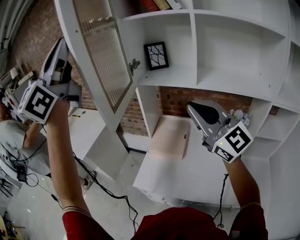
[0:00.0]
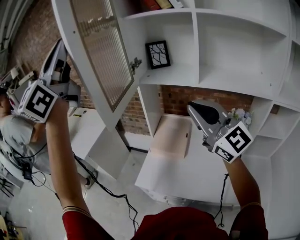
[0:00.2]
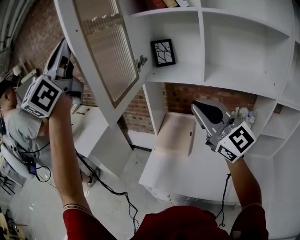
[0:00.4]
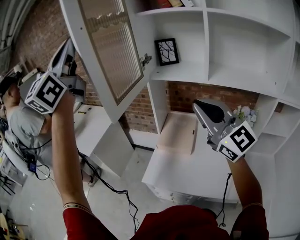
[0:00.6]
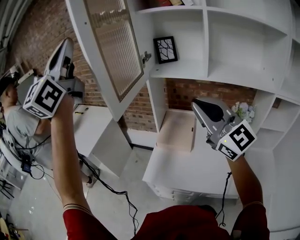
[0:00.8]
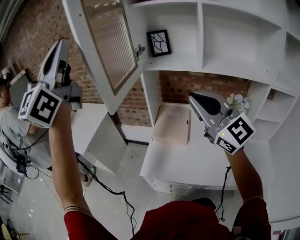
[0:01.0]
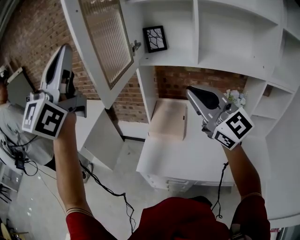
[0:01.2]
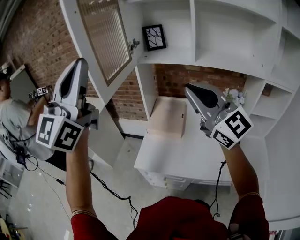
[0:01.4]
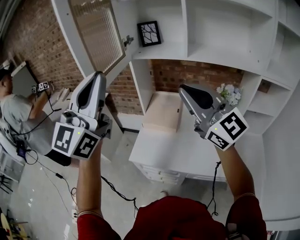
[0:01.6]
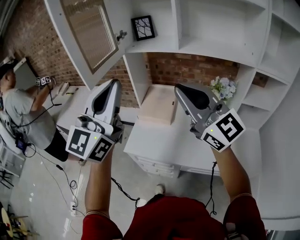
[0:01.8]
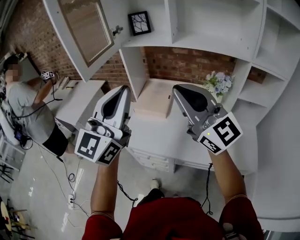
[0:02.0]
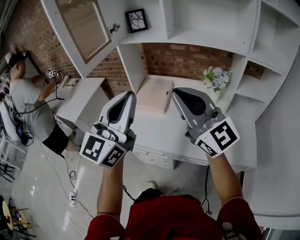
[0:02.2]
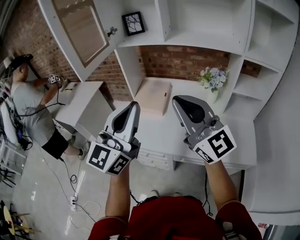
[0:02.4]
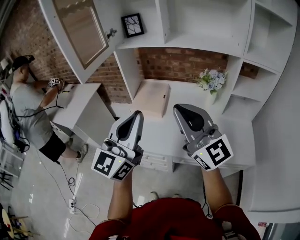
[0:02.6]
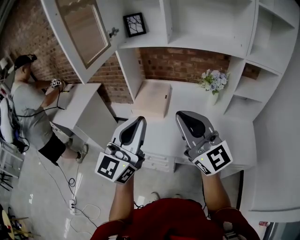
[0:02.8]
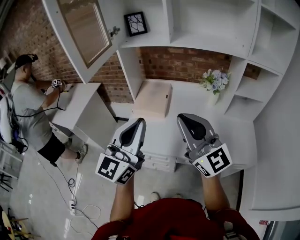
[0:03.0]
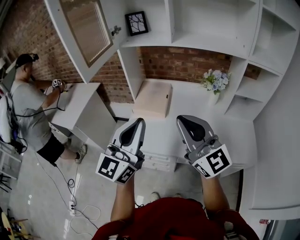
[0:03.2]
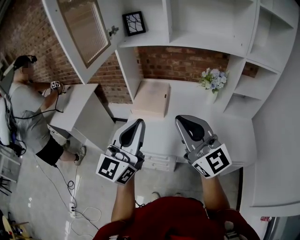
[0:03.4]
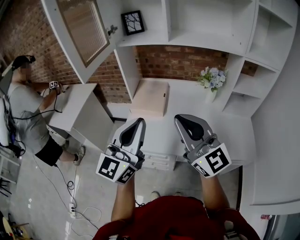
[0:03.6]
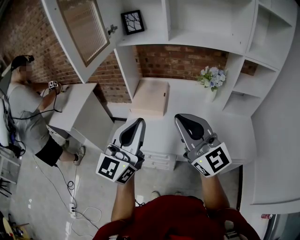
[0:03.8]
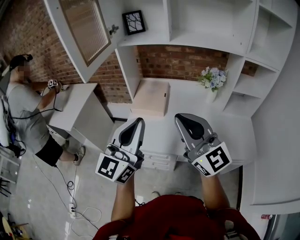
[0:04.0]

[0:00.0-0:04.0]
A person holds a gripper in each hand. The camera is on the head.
0:00.0 to 0:01.4: The left gripper heads downward and backward, covering some 15 cm, while the right gripper travels backward by roughly 5 cm.
0:01.4 to 0:02.6: The right gripper goes about 20 cm backward, to the right and downward. Meanwhile the left gripper heads downward, to the right and backward, covering about 30 cm, and turns by some 20 degrees.
0:02.6 to 0:04.0: The left gripper shifts by some 5 cm, while the right gripper moves about 5 cm.

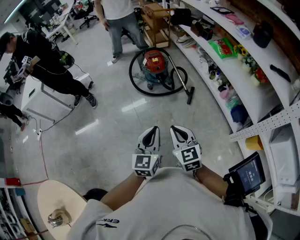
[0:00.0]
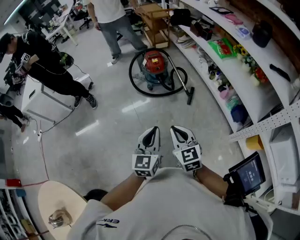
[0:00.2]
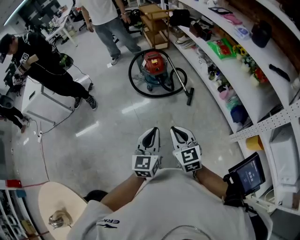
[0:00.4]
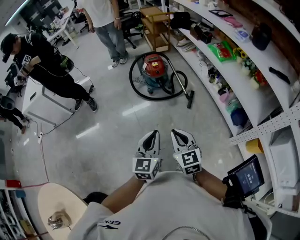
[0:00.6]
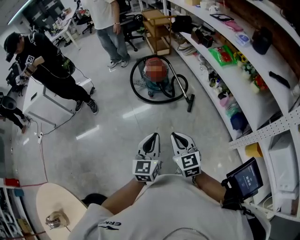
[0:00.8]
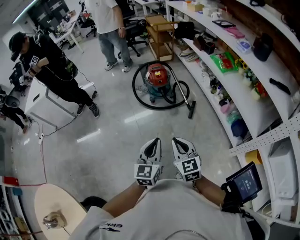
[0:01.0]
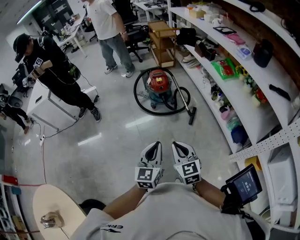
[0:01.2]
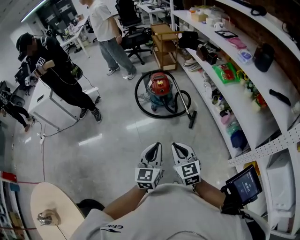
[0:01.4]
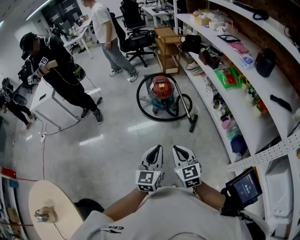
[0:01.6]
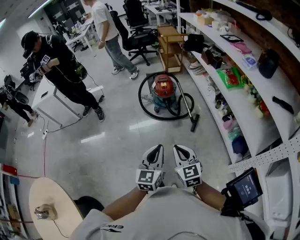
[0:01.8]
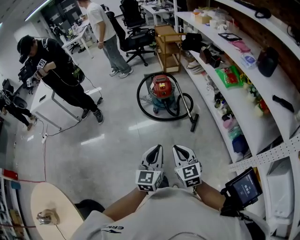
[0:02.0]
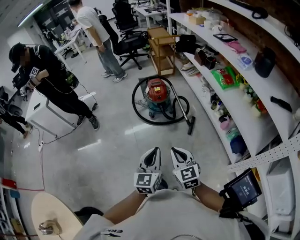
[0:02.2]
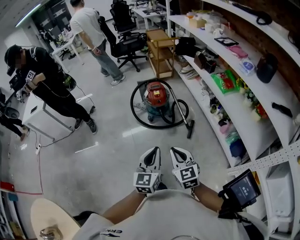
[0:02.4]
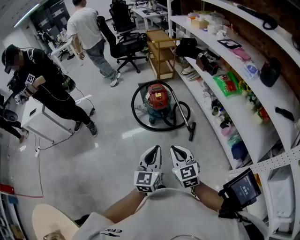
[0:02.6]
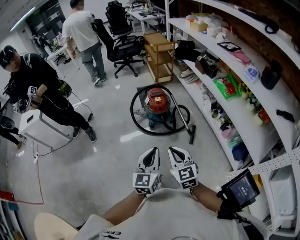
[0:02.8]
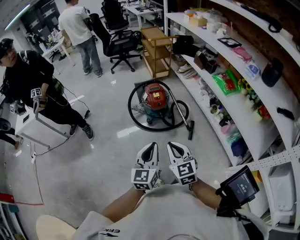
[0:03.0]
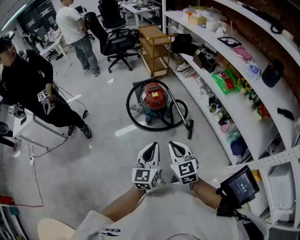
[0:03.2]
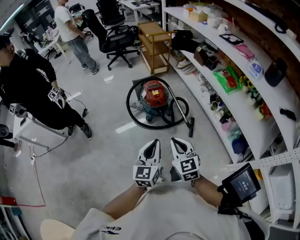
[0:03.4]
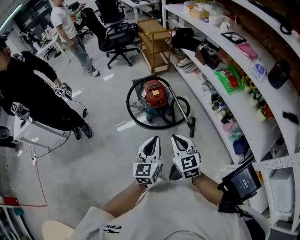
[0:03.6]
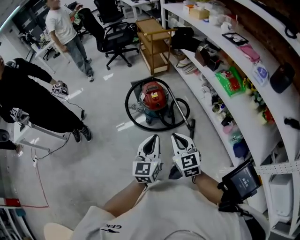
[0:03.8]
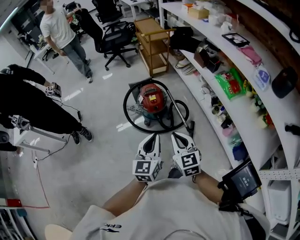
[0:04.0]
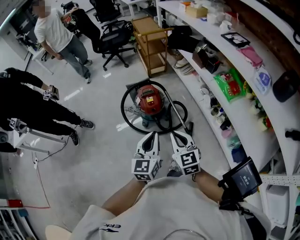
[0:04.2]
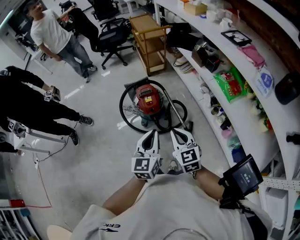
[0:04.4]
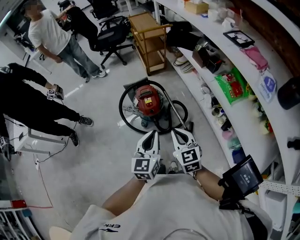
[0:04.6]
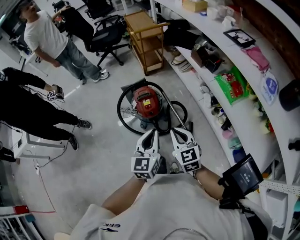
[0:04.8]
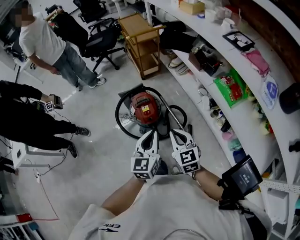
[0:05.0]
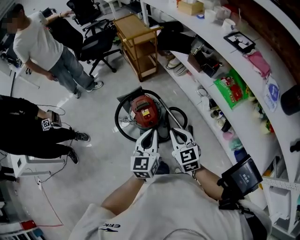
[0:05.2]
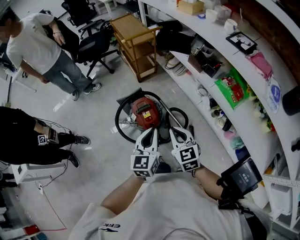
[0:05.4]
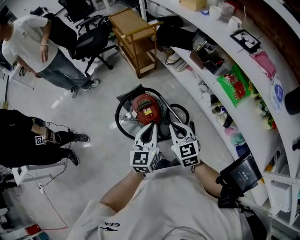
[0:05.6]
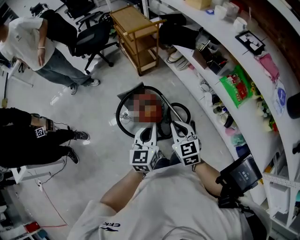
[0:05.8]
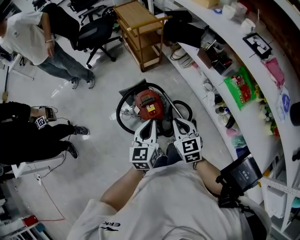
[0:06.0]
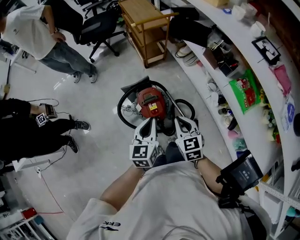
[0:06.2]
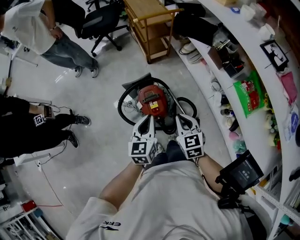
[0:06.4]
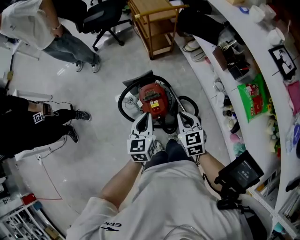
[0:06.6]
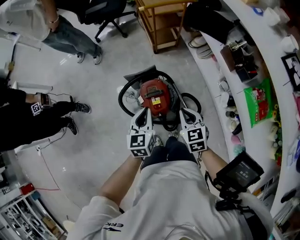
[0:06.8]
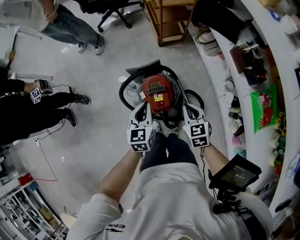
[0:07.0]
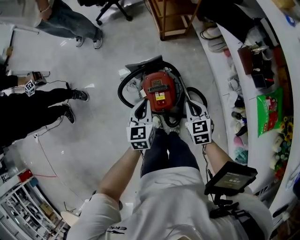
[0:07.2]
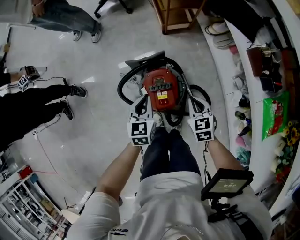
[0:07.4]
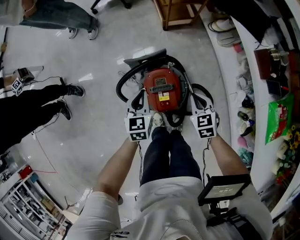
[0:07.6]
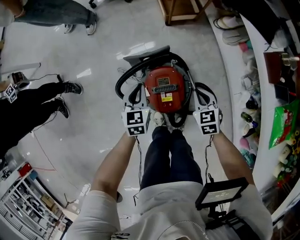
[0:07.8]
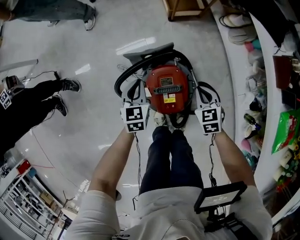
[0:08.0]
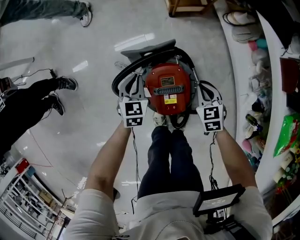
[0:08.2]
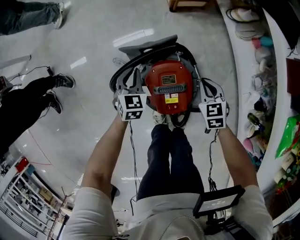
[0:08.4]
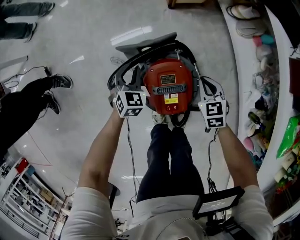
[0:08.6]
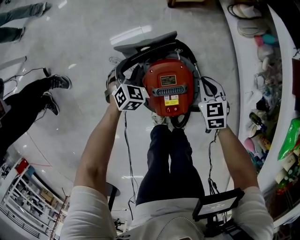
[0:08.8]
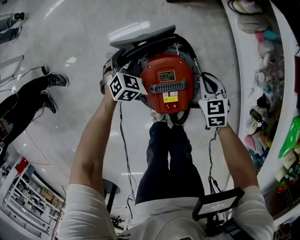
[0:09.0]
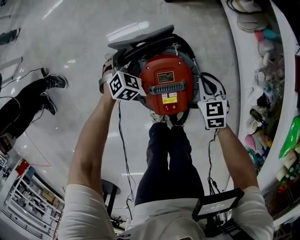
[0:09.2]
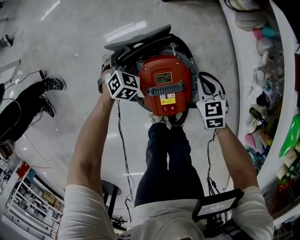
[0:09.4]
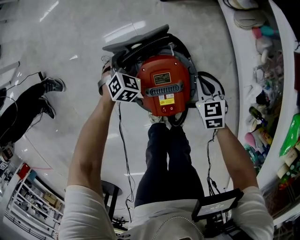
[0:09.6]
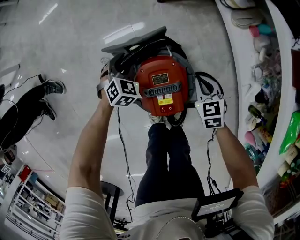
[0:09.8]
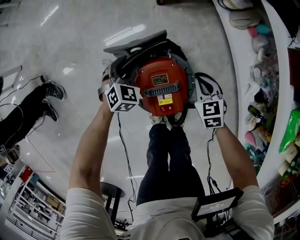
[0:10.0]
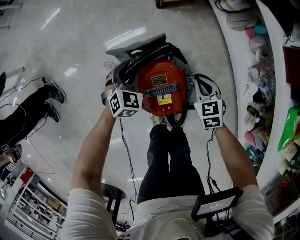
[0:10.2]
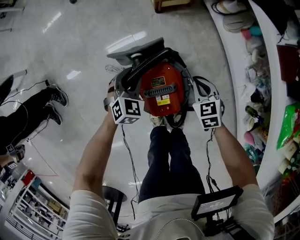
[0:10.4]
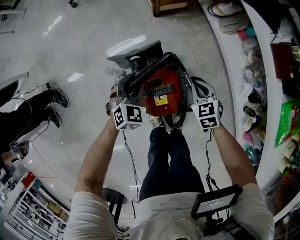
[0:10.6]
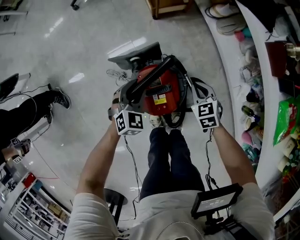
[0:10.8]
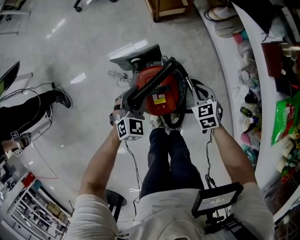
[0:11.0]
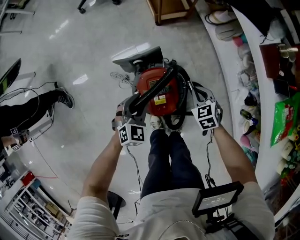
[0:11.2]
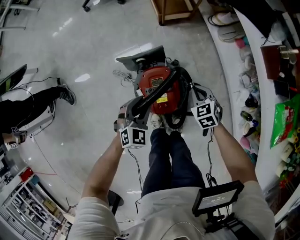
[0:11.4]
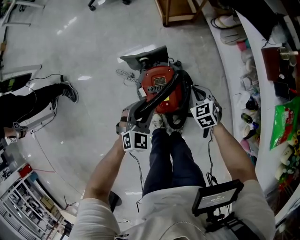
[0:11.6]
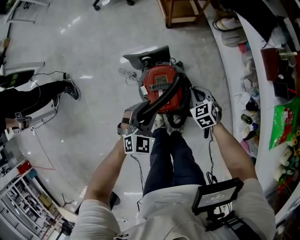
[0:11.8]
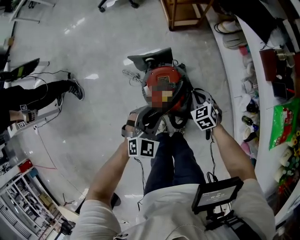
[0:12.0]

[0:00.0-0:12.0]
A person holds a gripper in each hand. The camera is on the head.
0:00.0 to 0:01.6: The grippers both shift to the right by approximately 5 cm.
0:01.6 to 0:03.0: The grippers both shift forward and to the left by some 20 cm.
0:03.0 to 0:04.4: The two grippers go approximately 30 cm forward and to the right.
0:04.4 to 0:06.0: The two grippers go roughly 25 cm forward.
0:06.0 to 0:07.6: The two grippers go roughly 35 cm downward and forward. The left gripper rotates about 30 degrees. Meanwhile the right gripper swivels approximately 20 degrees.
0:07.6 to 0:09.0: The left gripper moves downward and forward, some 30 cm, turns by about 40 degrees, and opens up; the right gripper is displaced downward by approximately 20 cm.
0:09.0 to 0:10.4: The left gripper goes some 10 cm upward and to the right.
0:10.4 to 0:12.0: The right gripper shifts some 10 cm backward and upward; the left gripper goes about 25 cm upward, backward and to the right.

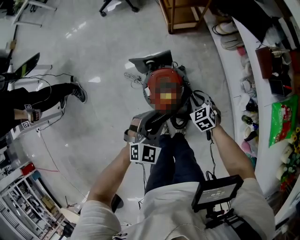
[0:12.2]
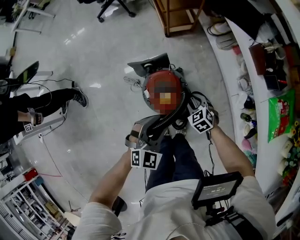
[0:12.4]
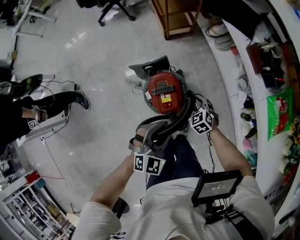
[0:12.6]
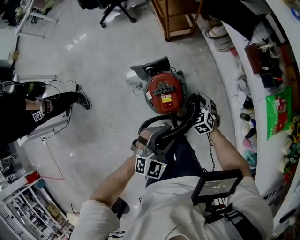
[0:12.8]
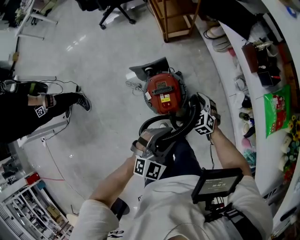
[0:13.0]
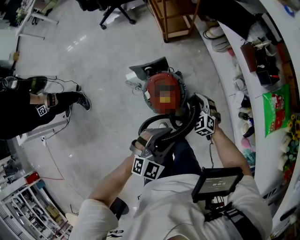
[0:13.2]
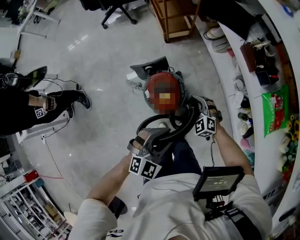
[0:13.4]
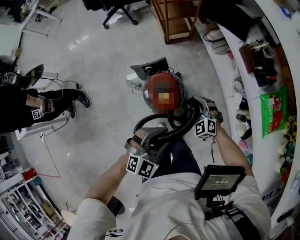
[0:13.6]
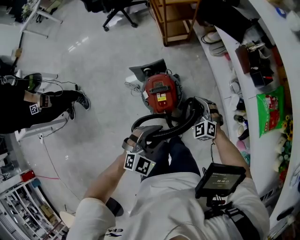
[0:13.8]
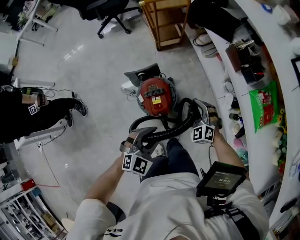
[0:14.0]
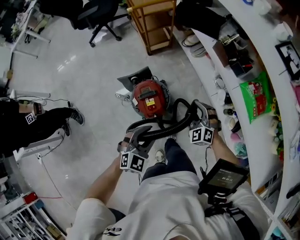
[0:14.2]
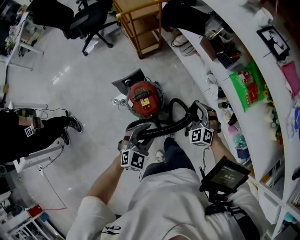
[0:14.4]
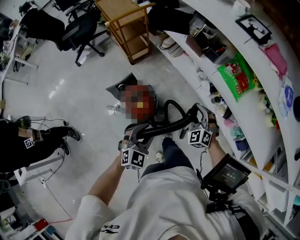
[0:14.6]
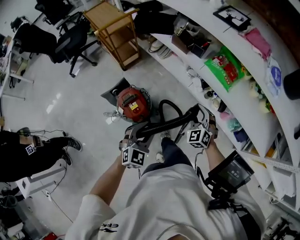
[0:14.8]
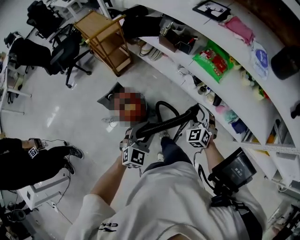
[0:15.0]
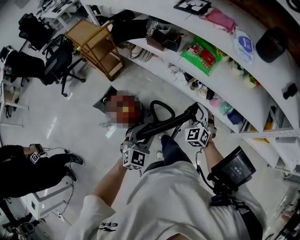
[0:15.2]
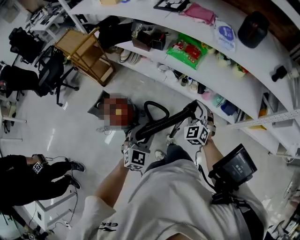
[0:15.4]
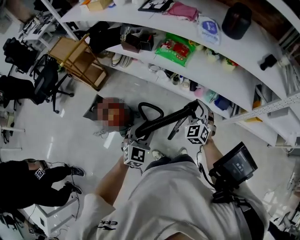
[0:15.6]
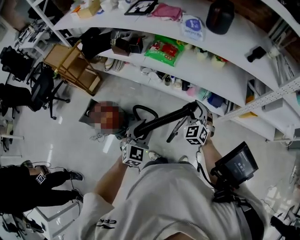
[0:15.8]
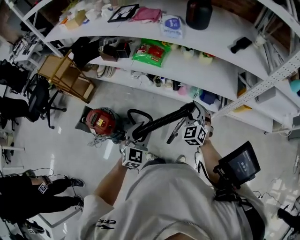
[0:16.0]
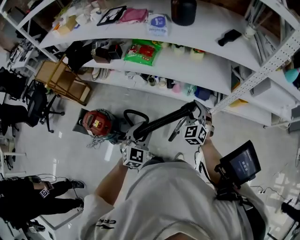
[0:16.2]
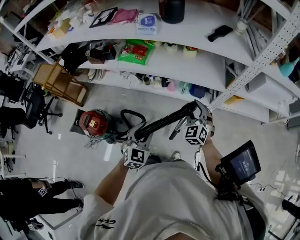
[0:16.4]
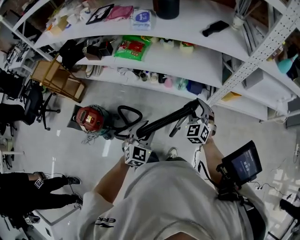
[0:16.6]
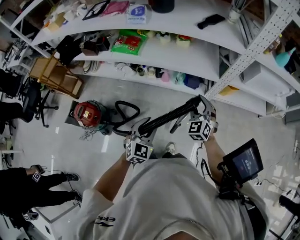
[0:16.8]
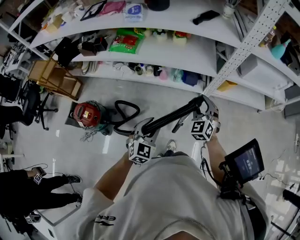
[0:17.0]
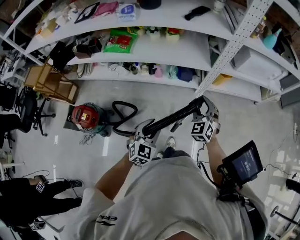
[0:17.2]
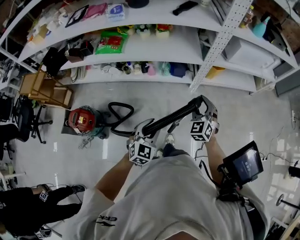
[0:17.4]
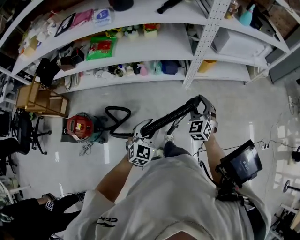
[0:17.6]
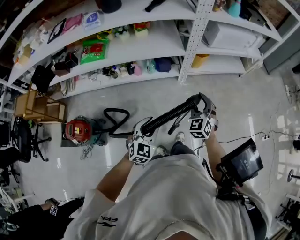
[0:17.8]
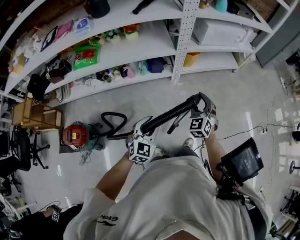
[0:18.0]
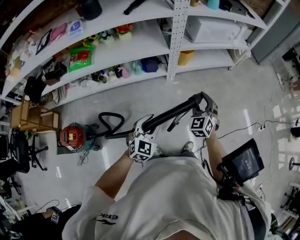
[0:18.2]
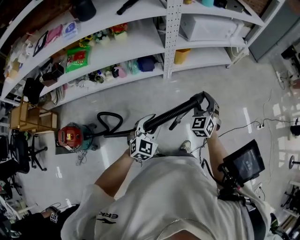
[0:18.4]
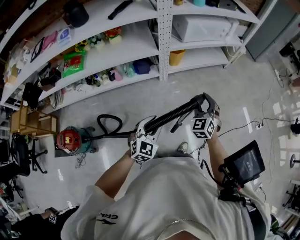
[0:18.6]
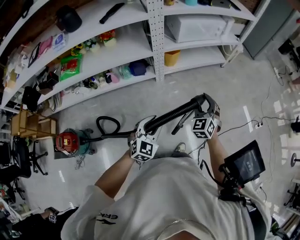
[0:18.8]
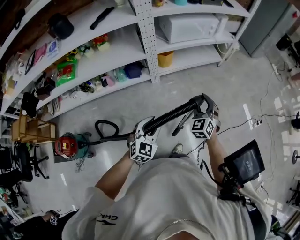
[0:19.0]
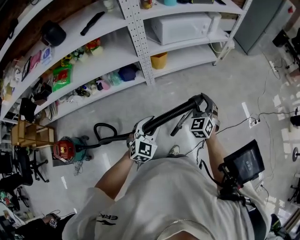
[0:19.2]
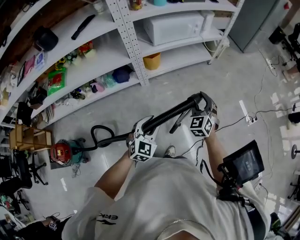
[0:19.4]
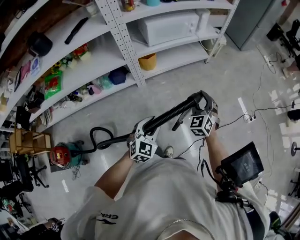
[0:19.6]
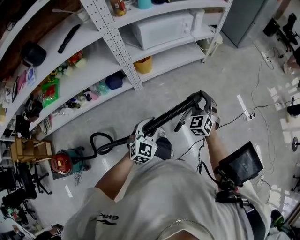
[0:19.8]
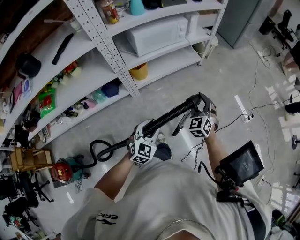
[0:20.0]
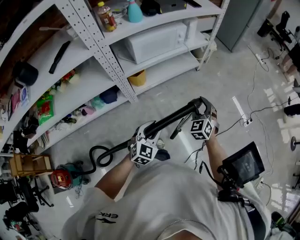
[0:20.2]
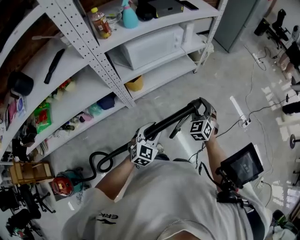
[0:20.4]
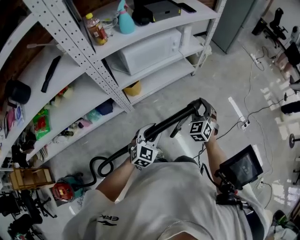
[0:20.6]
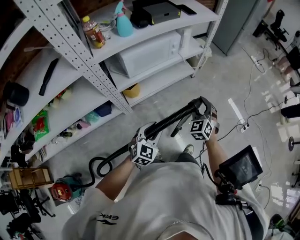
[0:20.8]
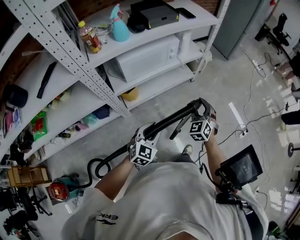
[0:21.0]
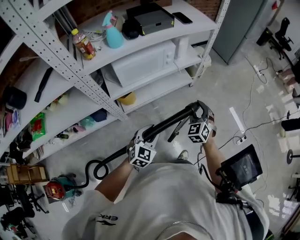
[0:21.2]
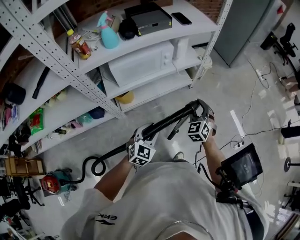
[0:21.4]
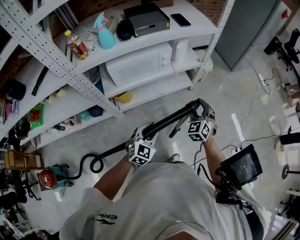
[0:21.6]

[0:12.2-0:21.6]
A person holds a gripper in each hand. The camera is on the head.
0:12.2 to 0:13.8: The right gripper moves upward, approximately 15 cm, rotates some 30 degrees, and opens its fingers. Meanwhile the left gripper goes some 15 cm upward, backward and to the right.
0:13.8 to 0:15.4: The right gripper shifts by roughly 50 cm, and swivels roughly 60 degrees. Meanwhile the left gripper ends up about 25 cm from where it was, and rotates roughly 30 degrees.
0:15.4 to 0:17.0: The two grippers go about 35 cm to the right. The right gripper changes its angle by about 20 degrees.
0:17.0 to 0:18.4: The right gripper shifts by some 30 cm, and swivels about 30 degrees; the left gripper changes place by some 20 cm, and rotates approximately 30 degrees.
0:18.4 to 0:20.0: The grippers both shift to the right and forward by approximately 35 cm.
0:20.0 to 0:21.6: Both grippers travel together forward, roughly 30 cm.
